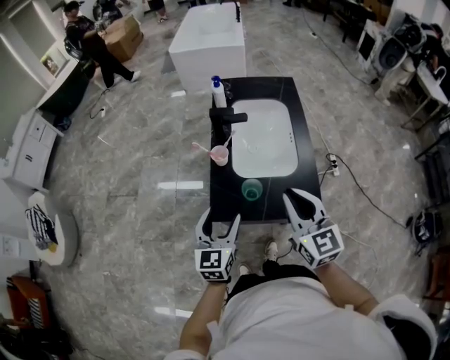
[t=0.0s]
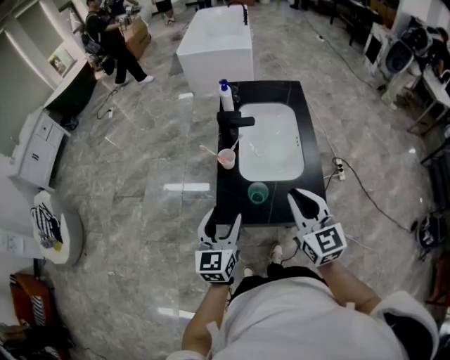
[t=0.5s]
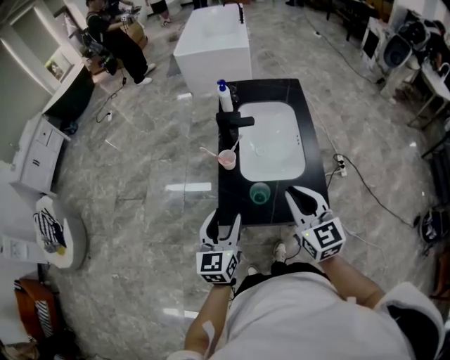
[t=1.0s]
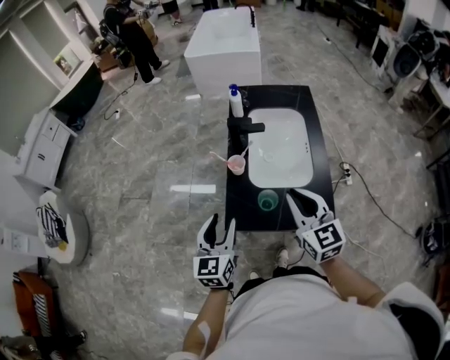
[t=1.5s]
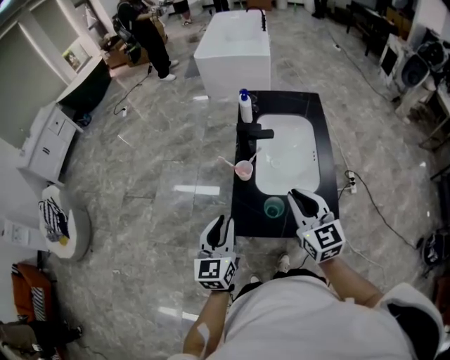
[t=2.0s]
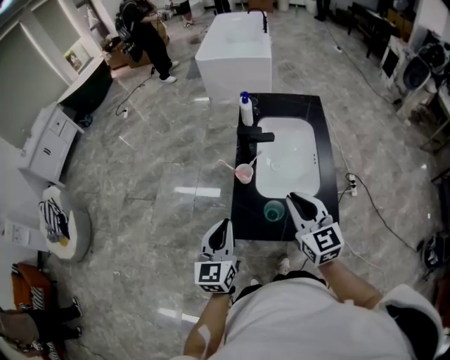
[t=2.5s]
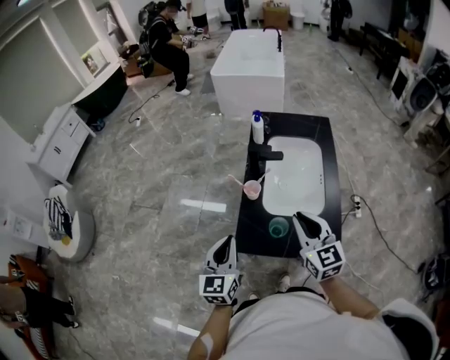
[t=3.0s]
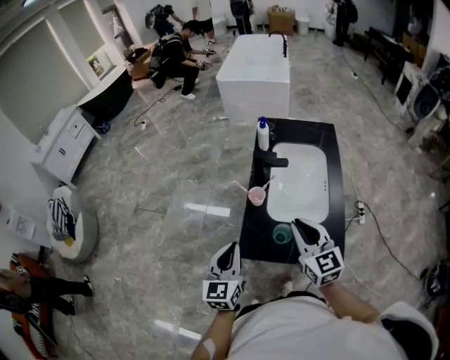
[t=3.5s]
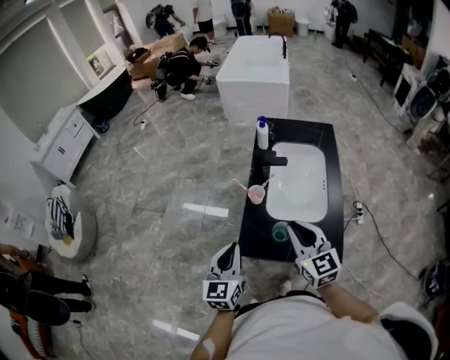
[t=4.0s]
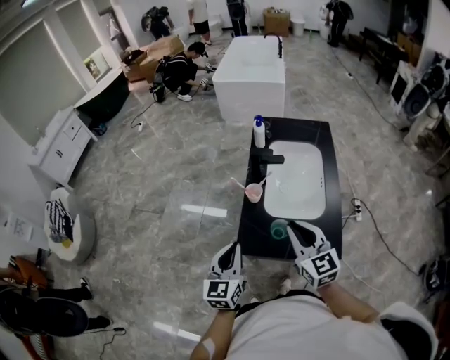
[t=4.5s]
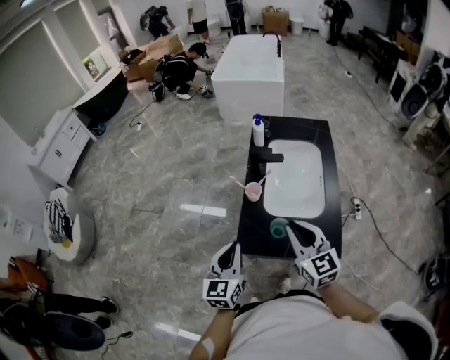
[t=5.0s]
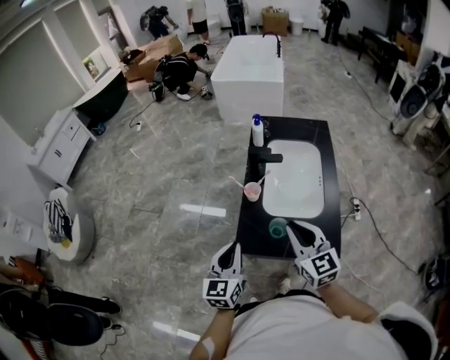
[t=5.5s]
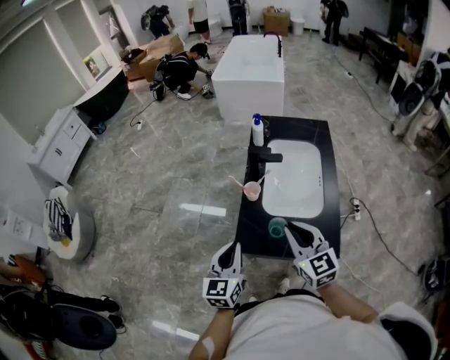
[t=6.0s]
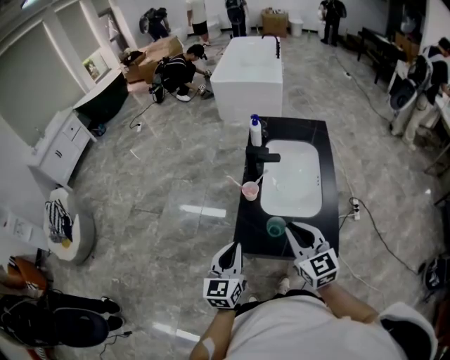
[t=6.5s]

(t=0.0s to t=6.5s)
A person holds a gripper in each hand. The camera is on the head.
t=0.0s - t=2.0s: The left gripper is displaced to the left by approximately 5 cm, and closes; the right gripper is displaced forward by about 10 cm.
t=2.0s - t=6.5s: The grippers make only small movements.

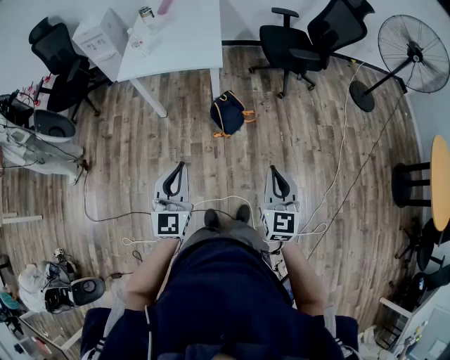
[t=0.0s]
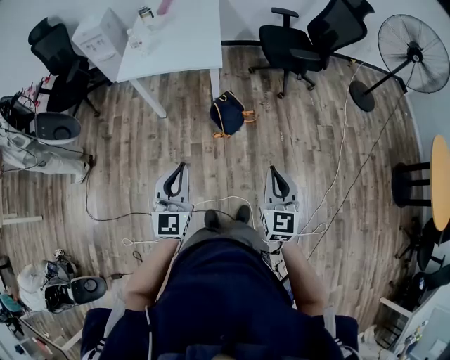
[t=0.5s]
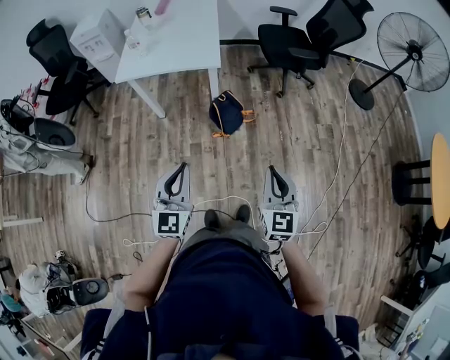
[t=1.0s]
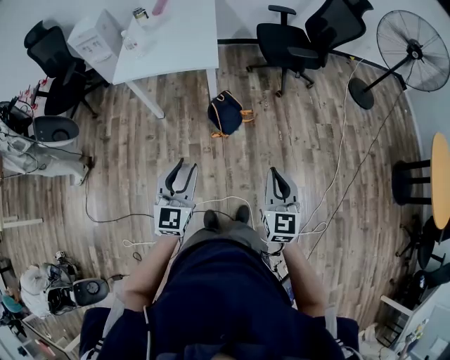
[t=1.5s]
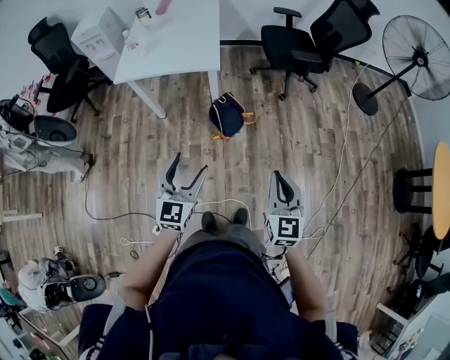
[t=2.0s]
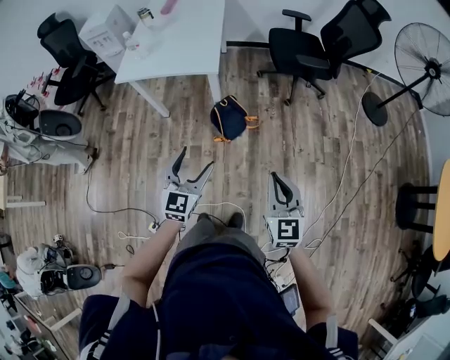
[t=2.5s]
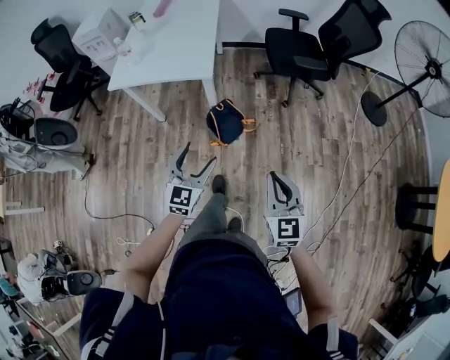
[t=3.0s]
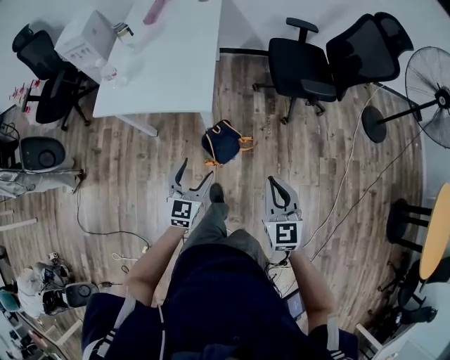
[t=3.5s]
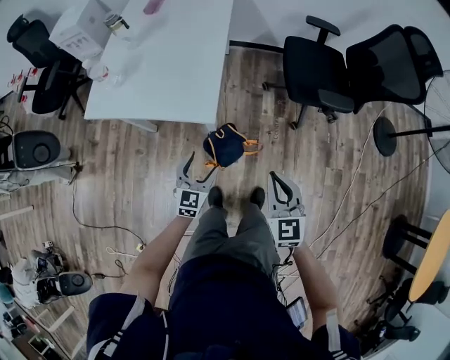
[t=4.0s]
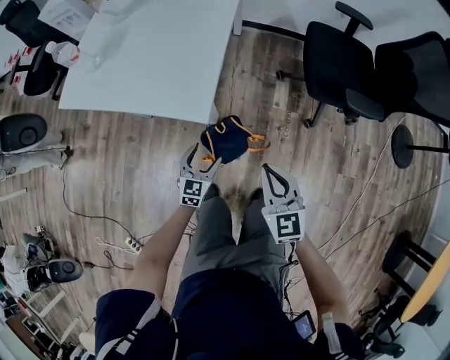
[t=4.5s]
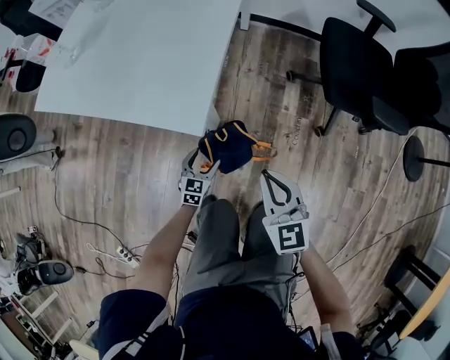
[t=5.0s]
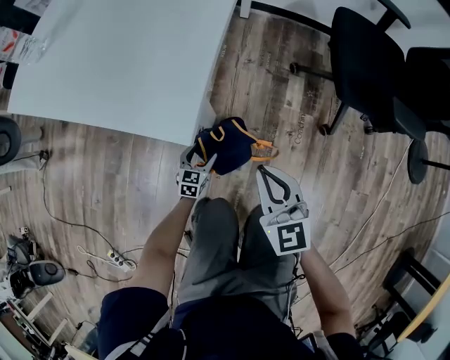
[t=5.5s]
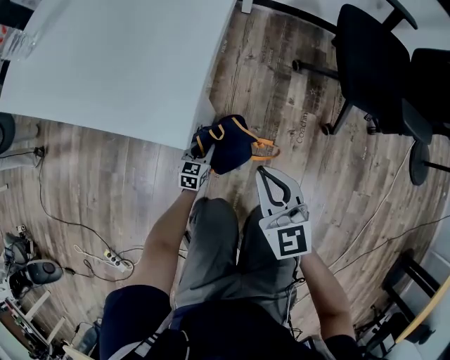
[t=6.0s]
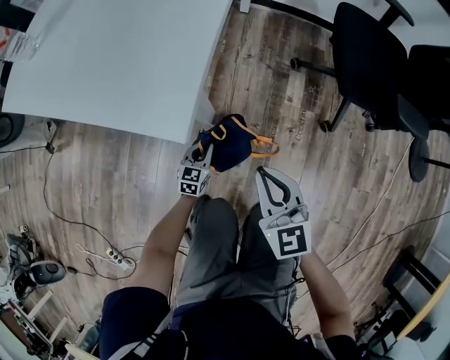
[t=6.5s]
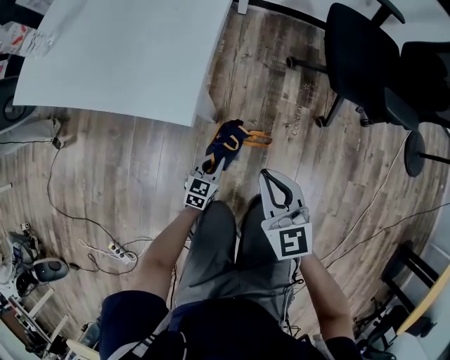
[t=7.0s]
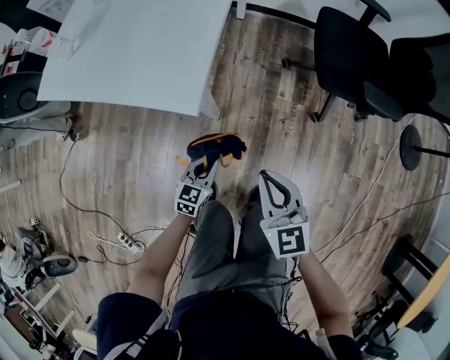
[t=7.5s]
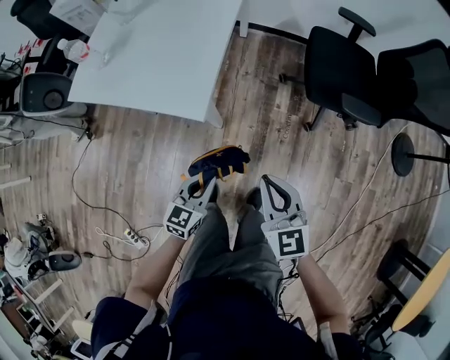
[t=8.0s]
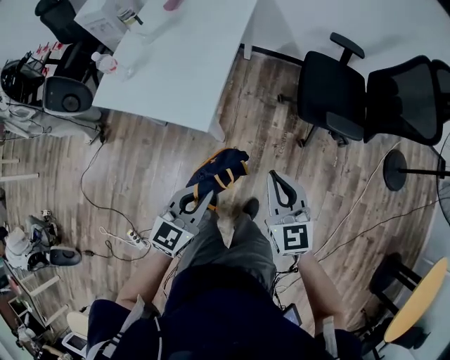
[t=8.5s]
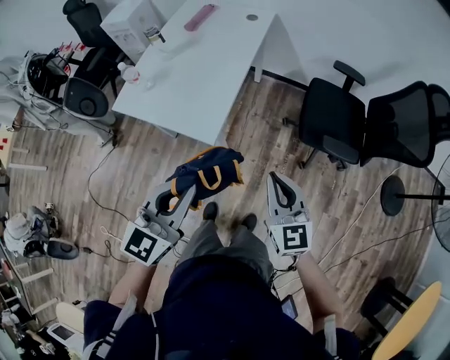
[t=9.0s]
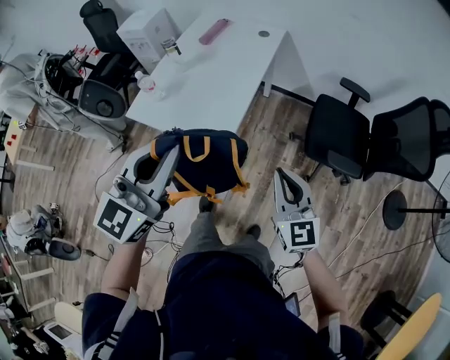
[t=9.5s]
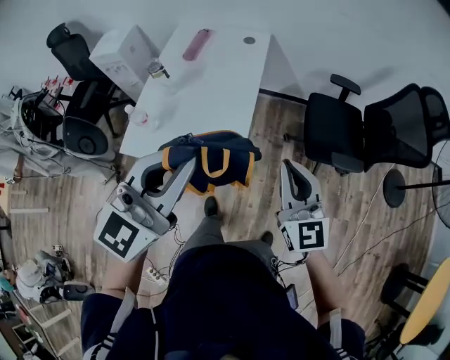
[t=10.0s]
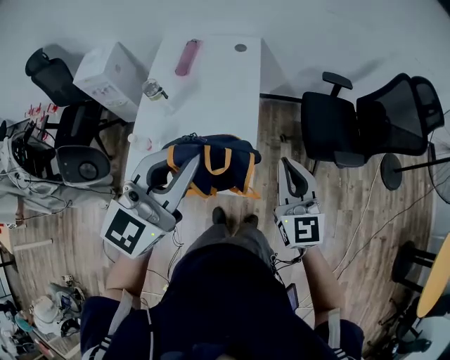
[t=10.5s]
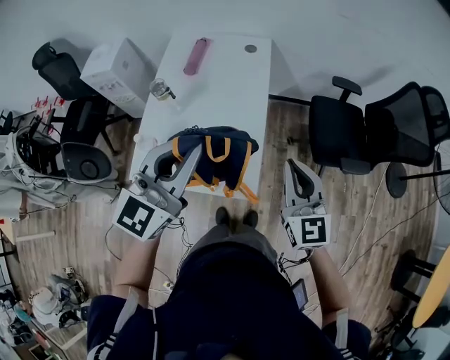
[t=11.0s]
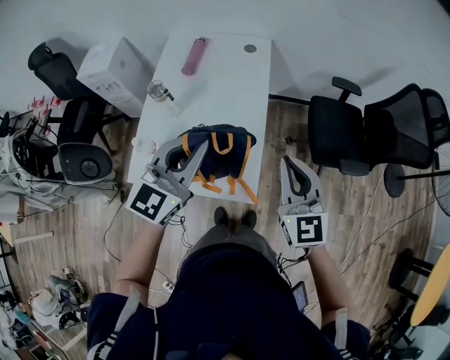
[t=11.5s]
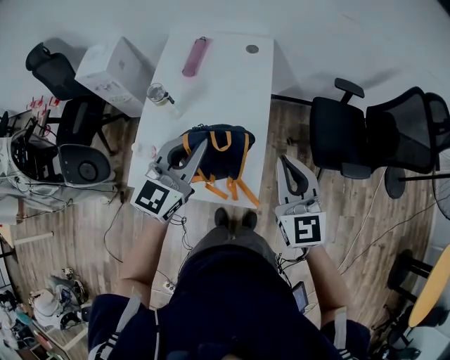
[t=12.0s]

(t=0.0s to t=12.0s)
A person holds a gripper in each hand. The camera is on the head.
t=0.0s - t=2.0s: The right gripper ends up roughly 5 cm from where it was. The left gripper shifts approximately 10 cm forward and to the right, and opens up.
t=2.0s - t=4.0s: The right gripper moves forward, about 40 cm. The left gripper goes about 40 cm forward and downward.
t=4.0s - t=6.0s: The right gripper moves downward and forward, about 35 cm. Meanwhile the left gripper moves downward, some 50 cm, turns by some 20 degrees, and closes up.
t=6.0s - t=8.0s: The left gripper heads upward, covering roughly 50 cm; the right gripper is displaced upward by approximately 25 cm.
t=8.0s - t=10.0s: The right gripper goes roughly 30 cm upward and forward. The left gripper moves upward, some 50 cm, and turns by roughly 40 degrees.
t=10.0s - t=12.0s: The right gripper shifts roughly 15 cm to the left and forward, while the left gripper moves forward, to the left and downward, some 25 cm.

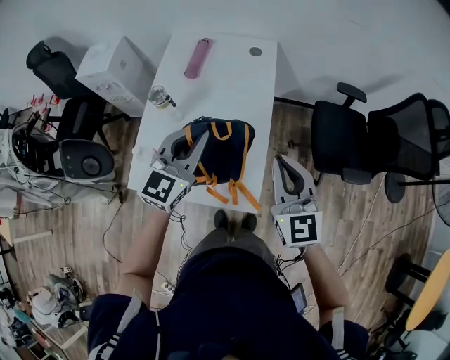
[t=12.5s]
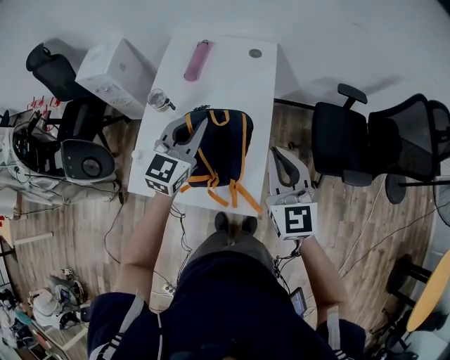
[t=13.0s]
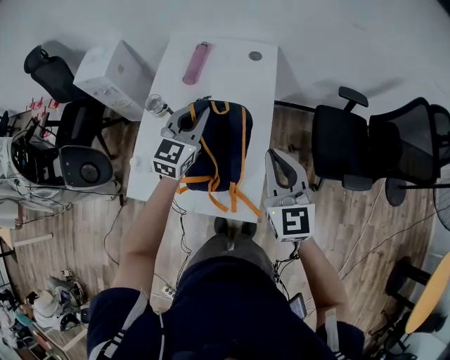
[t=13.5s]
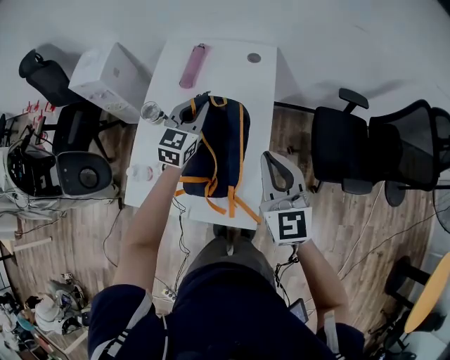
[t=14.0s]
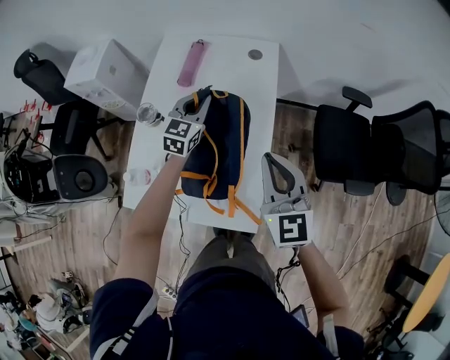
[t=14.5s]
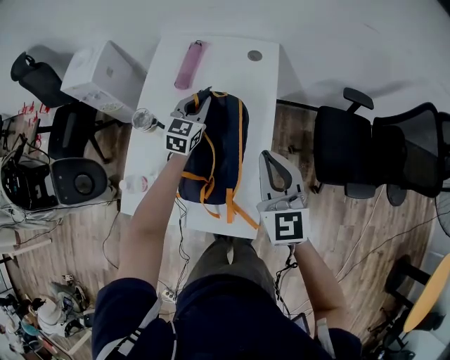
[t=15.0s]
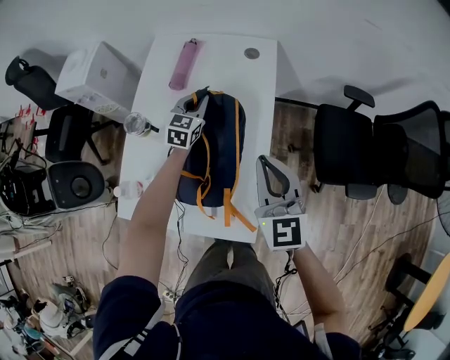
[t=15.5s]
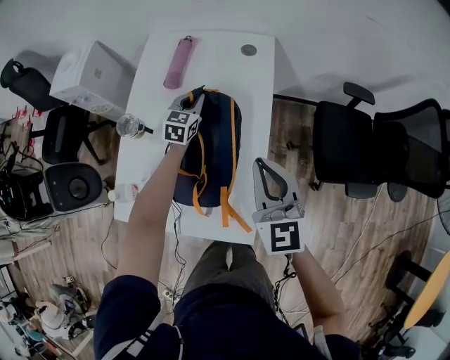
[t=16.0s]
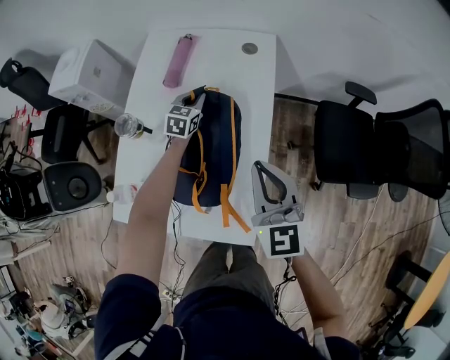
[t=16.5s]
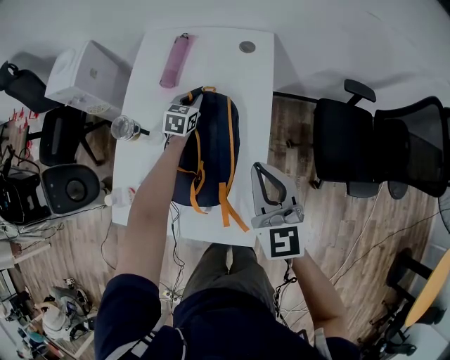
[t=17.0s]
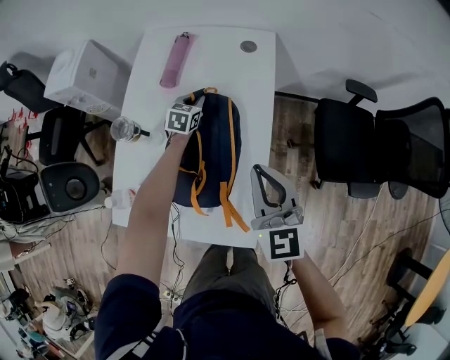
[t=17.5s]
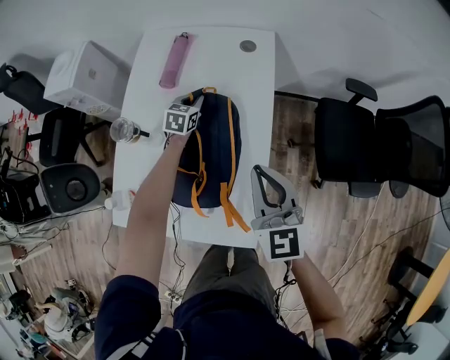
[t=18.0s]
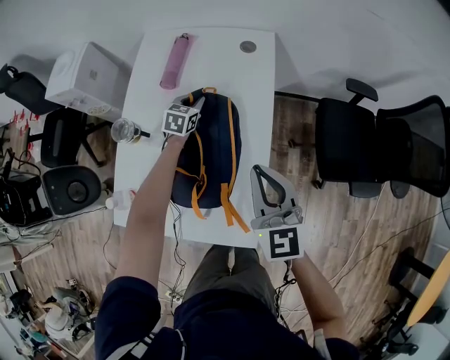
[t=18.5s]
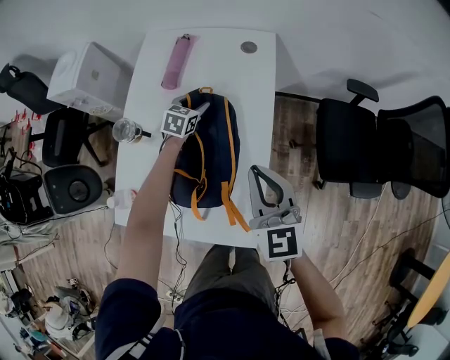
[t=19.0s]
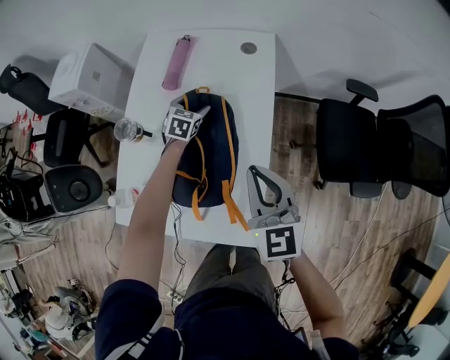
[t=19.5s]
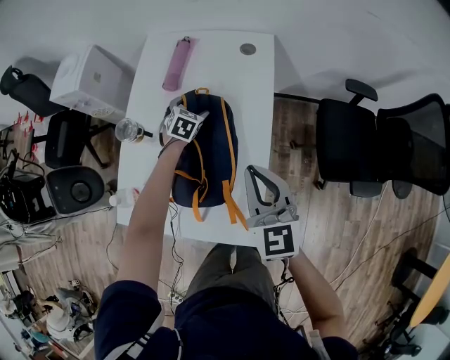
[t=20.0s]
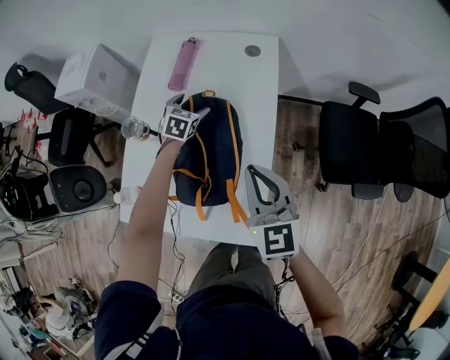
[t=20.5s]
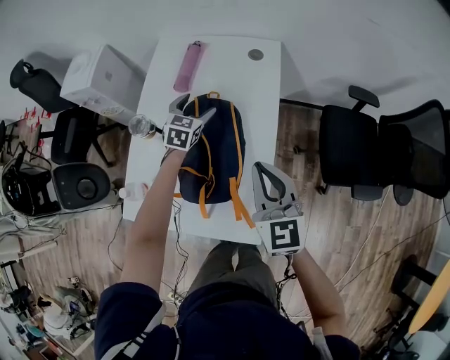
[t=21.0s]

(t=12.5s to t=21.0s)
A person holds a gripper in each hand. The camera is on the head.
t=12.5s - t=14.5s: The right gripper travels forward by some 10 cm, while the left gripper moves forward and downward, approximately 25 cm.
t=14.5s - t=16.5s: The left gripper goes approximately 20 cm downward and forward. Meanwhile the right gripper shifts by some 5 cm.
t=16.5s - t=19.0s: The left gripper opens up.
t=19.0s - t=21.0s: The left gripper travels upward by roughly 10 cm, and opens up.
